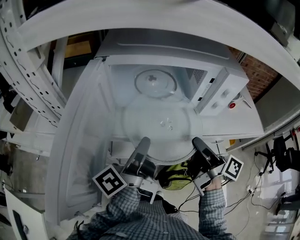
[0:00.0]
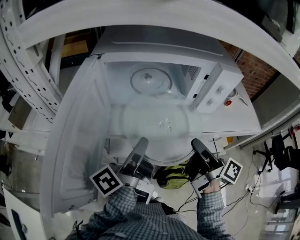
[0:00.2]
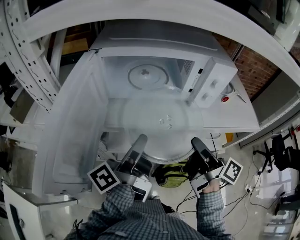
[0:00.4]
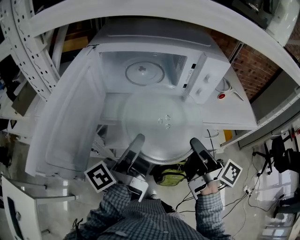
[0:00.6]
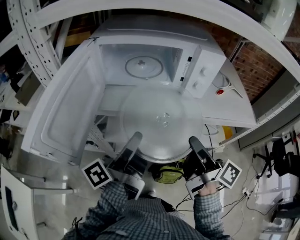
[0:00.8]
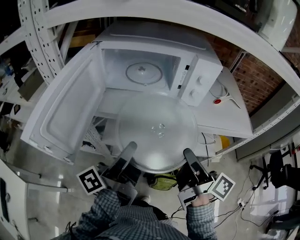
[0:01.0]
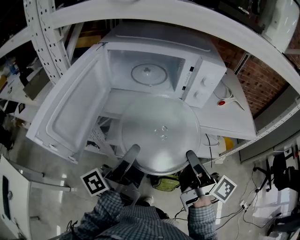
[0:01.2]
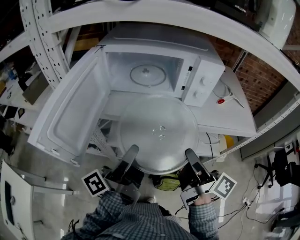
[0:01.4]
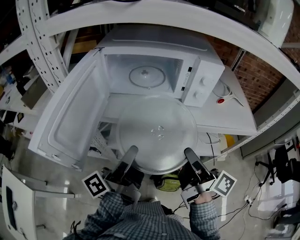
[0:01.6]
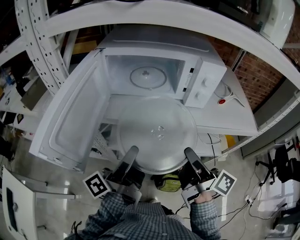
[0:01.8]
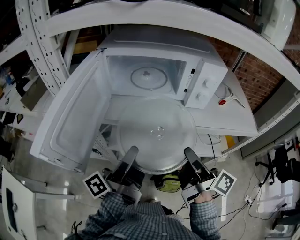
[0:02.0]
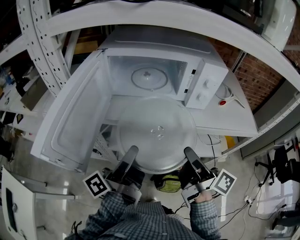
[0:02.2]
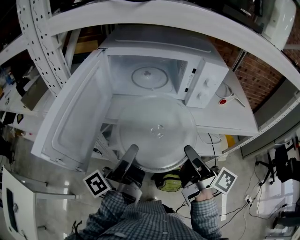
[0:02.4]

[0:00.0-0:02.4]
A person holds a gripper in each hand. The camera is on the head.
0:00.0 to 0:01.2: Both grippers move backward and to the right, roughly 15 cm.
0:01.2 to 0:02.4: The grippers move only a little.

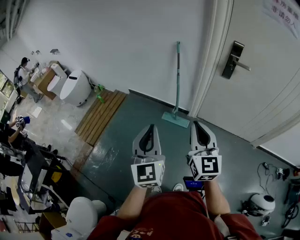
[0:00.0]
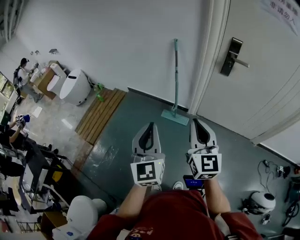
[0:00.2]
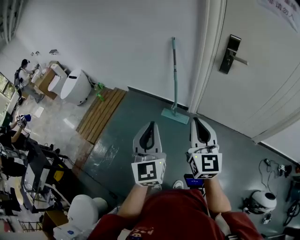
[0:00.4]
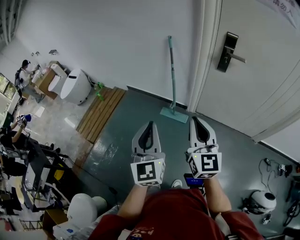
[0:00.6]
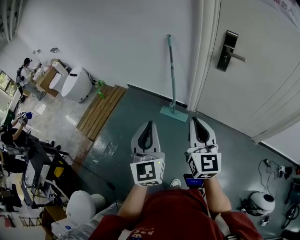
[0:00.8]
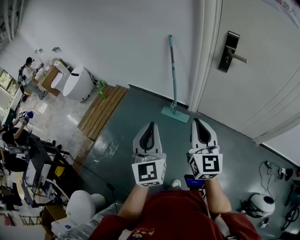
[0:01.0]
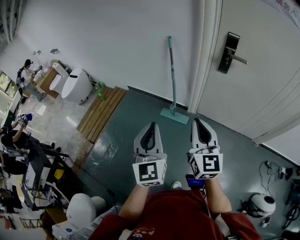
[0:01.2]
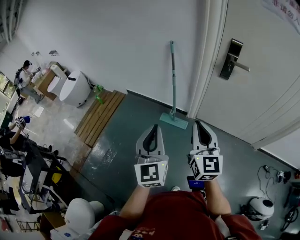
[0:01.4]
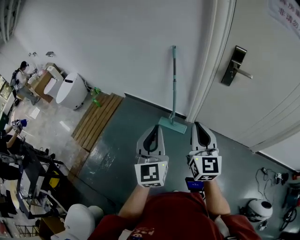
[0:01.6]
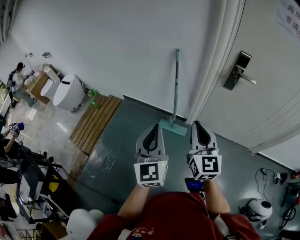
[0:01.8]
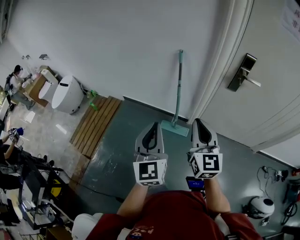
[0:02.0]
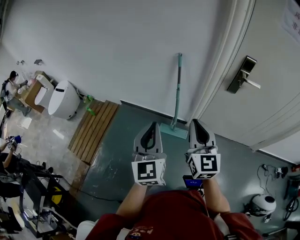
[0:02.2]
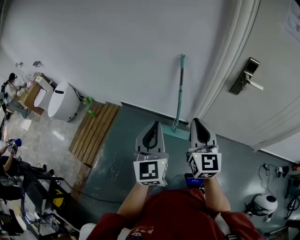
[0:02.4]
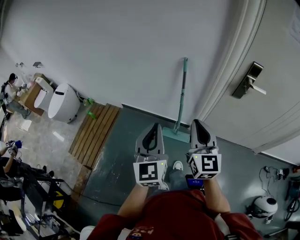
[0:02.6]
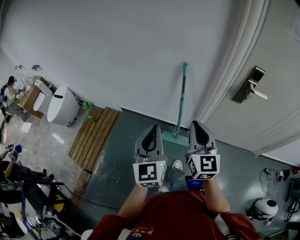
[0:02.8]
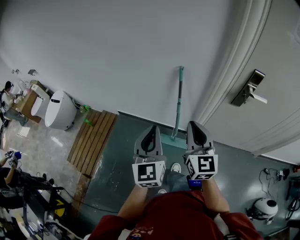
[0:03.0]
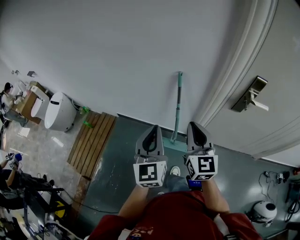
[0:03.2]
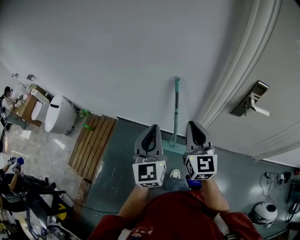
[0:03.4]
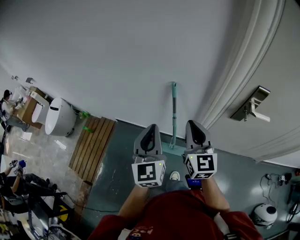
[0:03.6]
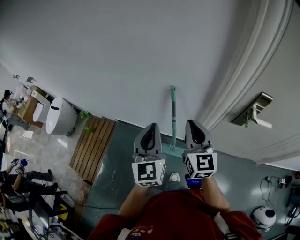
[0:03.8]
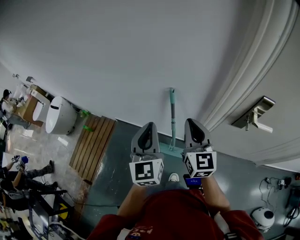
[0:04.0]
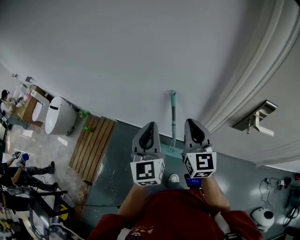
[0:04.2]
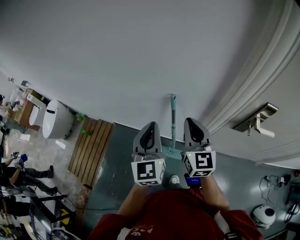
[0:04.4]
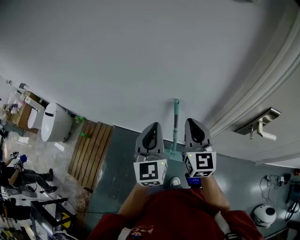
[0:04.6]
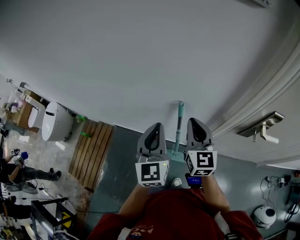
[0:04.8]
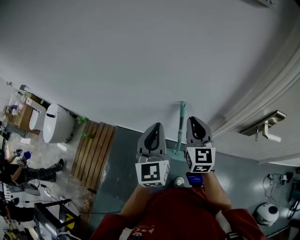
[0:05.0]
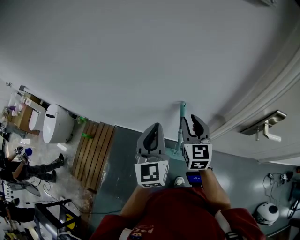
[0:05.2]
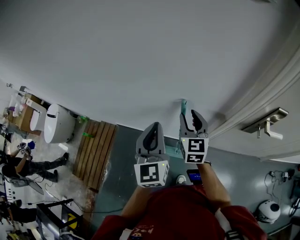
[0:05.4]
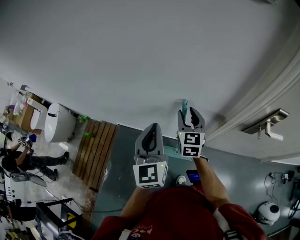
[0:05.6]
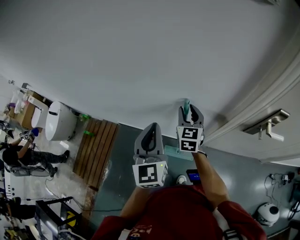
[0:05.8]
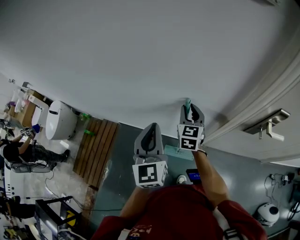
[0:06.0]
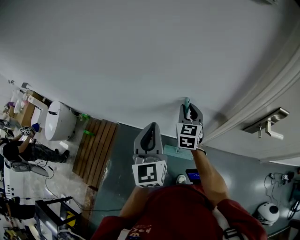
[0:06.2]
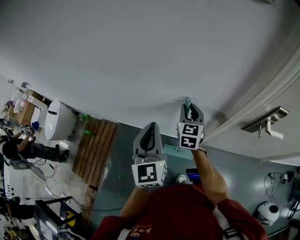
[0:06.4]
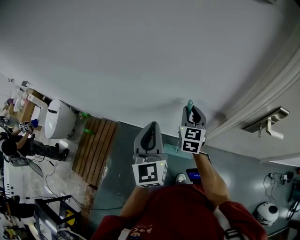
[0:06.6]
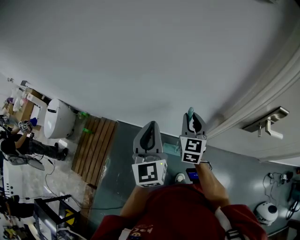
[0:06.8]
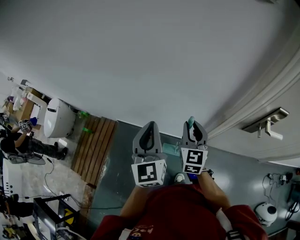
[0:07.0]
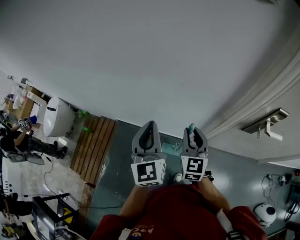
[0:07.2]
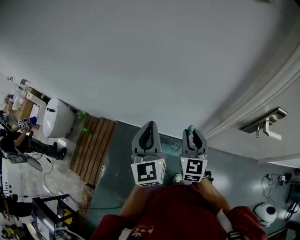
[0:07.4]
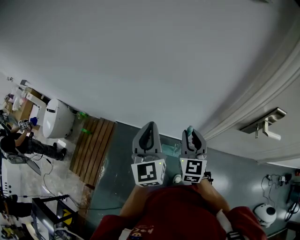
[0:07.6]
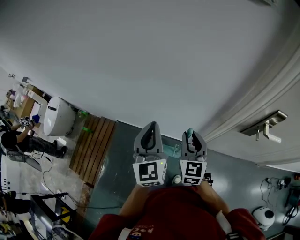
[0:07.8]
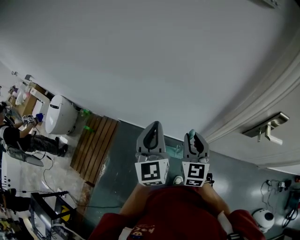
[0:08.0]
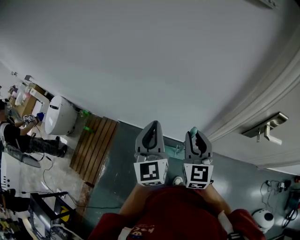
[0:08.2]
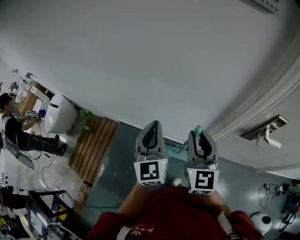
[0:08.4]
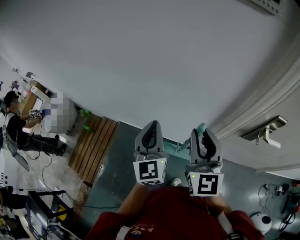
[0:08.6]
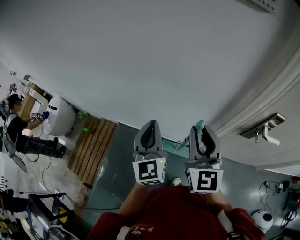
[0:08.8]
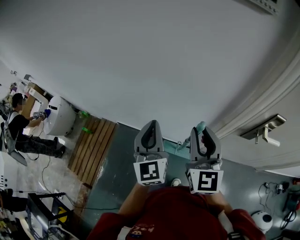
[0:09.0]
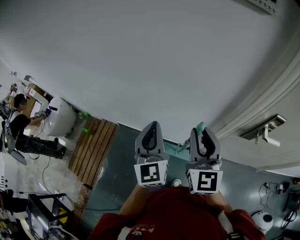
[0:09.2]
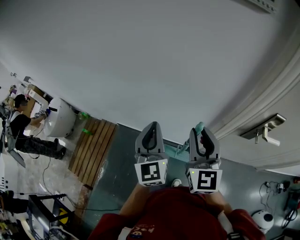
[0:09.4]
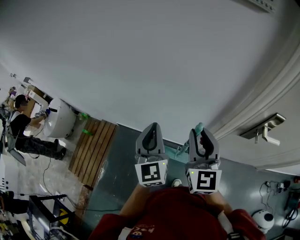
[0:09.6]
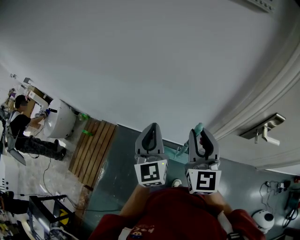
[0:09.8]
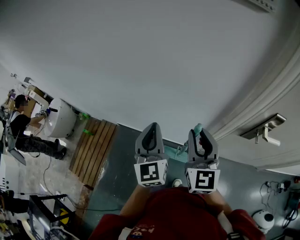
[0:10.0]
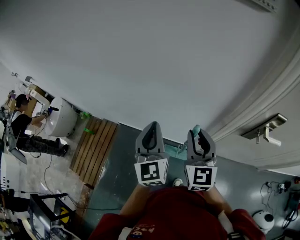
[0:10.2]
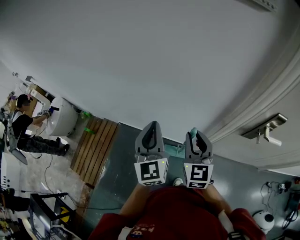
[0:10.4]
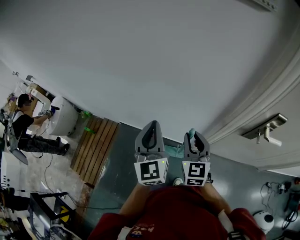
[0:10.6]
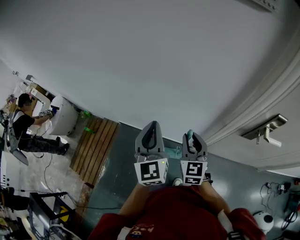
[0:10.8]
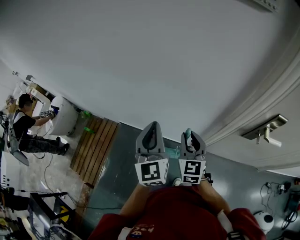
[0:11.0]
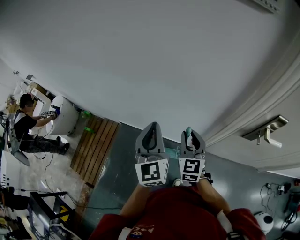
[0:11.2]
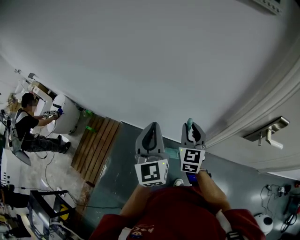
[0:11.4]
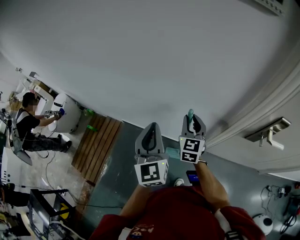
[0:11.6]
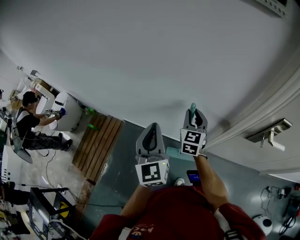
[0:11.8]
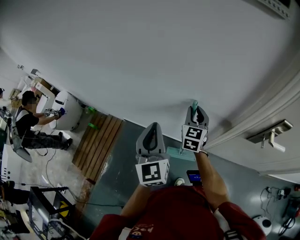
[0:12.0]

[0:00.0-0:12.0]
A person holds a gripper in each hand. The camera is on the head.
0:00.0 to 0:01.6: The left gripper heads forward and to the right, covering roughly 10 cm, while the right gripper travels forward by roughly 10 cm.
0:01.6 to 0:03.0: The left gripper travels forward by approximately 25 cm. The right gripper is displaced forward and to the left by about 25 cm.
0:03.0 to 0:04.4: The two grippers go roughly 25 cm forward.
0:04.4 to 0:06.0: The right gripper is displaced forward and downward by some 15 cm, and opens; the left gripper shifts by some 5 cm.
0:06.0 to 0:07.6: The right gripper moves backward, roughly 15 cm.
0:07.6 to 0:09.0: The right gripper is displaced upward by about 15 cm.
0:09.0 to 0:10.4: The right gripper shifts about 10 cm downward.
0:10.4 to 0:12.0: The right gripper moves forward and downward, approximately 15 cm.

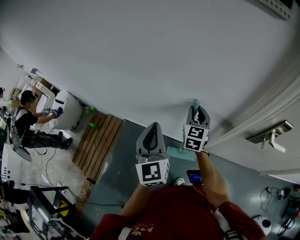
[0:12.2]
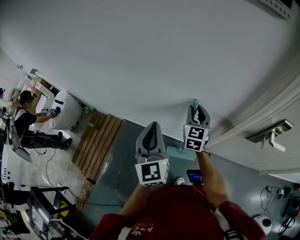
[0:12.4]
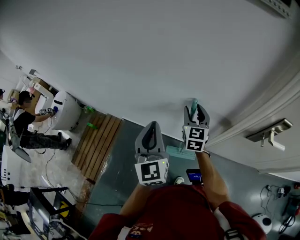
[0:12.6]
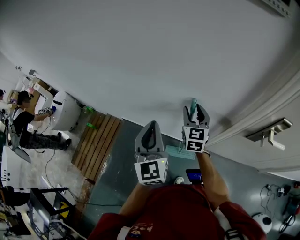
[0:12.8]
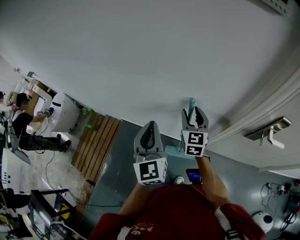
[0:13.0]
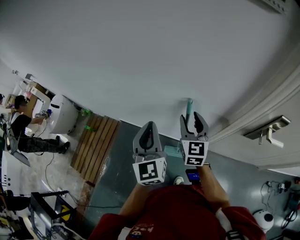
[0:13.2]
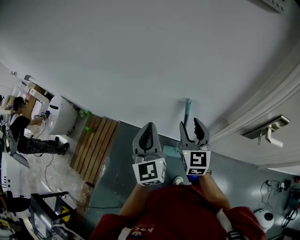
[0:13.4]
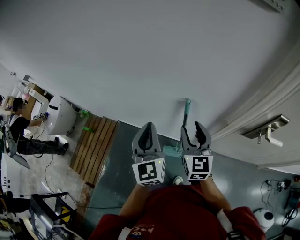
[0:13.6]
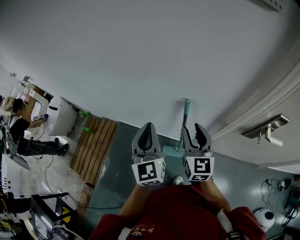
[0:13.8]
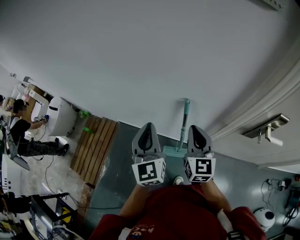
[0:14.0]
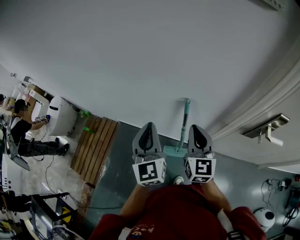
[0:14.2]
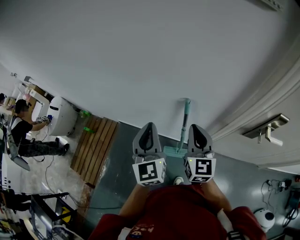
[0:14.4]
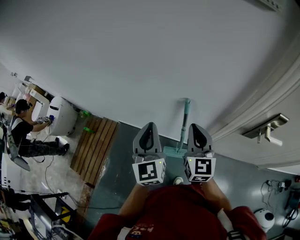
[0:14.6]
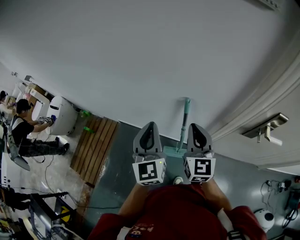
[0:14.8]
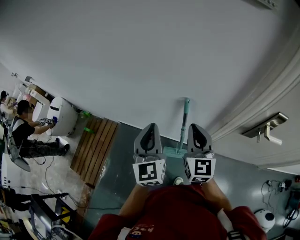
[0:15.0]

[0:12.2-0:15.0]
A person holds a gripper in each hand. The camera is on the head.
0:12.2 to 0:13.6: The right gripper shifts about 10 cm backward, and opens up.
0:13.6 to 0:15.0: The right gripper closes up.

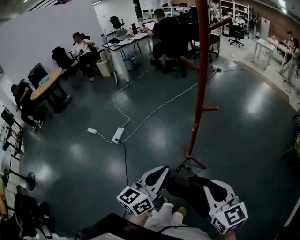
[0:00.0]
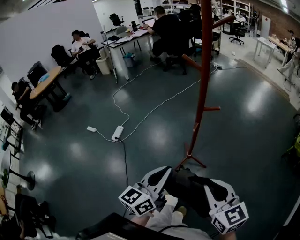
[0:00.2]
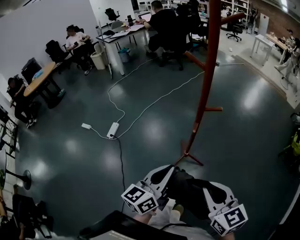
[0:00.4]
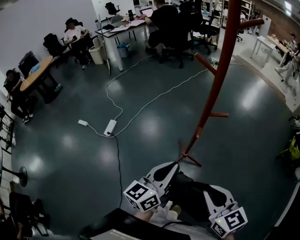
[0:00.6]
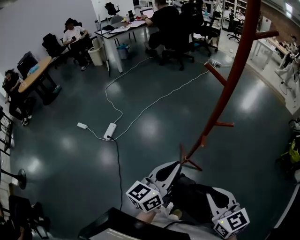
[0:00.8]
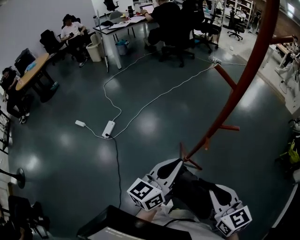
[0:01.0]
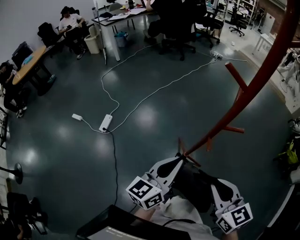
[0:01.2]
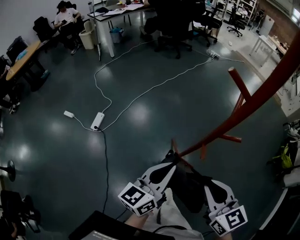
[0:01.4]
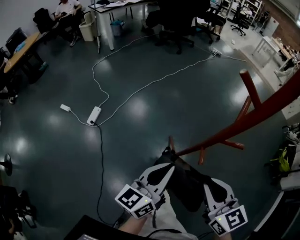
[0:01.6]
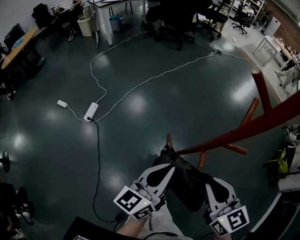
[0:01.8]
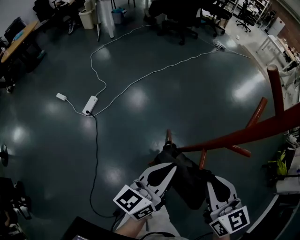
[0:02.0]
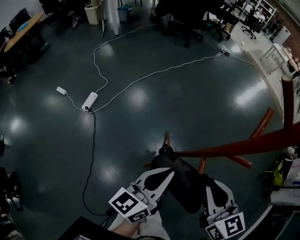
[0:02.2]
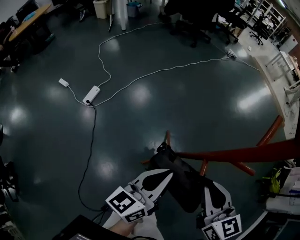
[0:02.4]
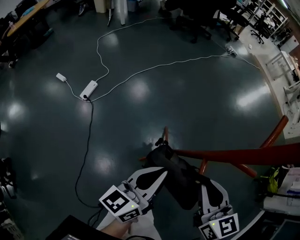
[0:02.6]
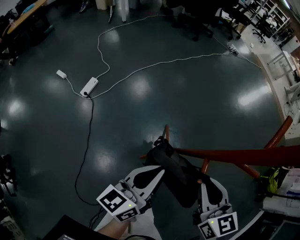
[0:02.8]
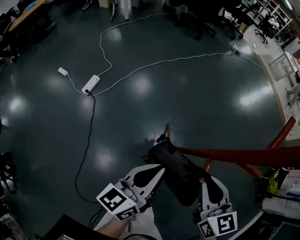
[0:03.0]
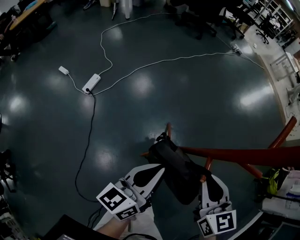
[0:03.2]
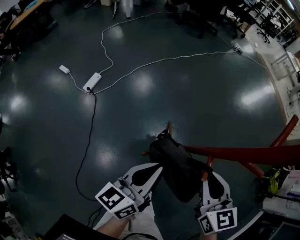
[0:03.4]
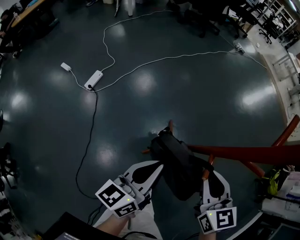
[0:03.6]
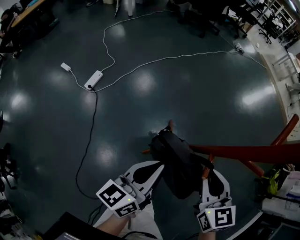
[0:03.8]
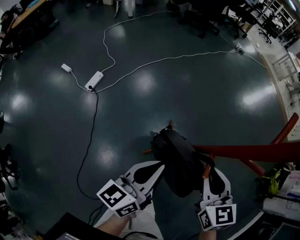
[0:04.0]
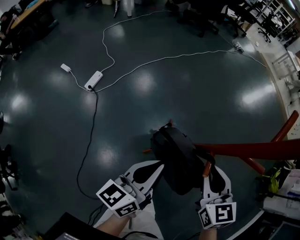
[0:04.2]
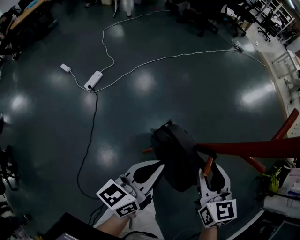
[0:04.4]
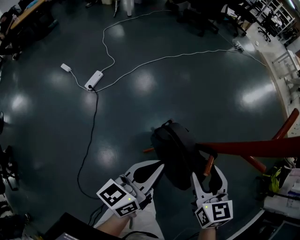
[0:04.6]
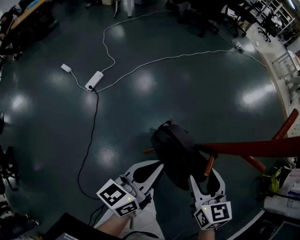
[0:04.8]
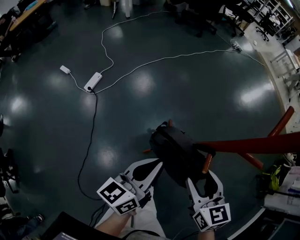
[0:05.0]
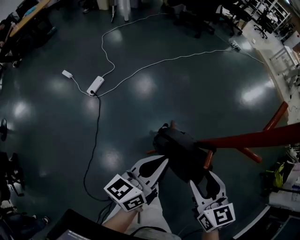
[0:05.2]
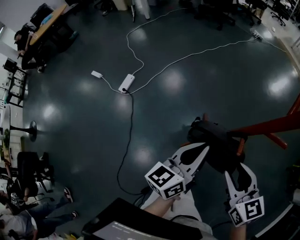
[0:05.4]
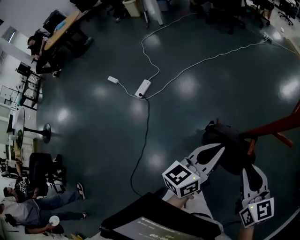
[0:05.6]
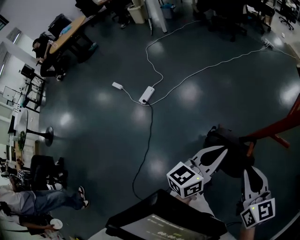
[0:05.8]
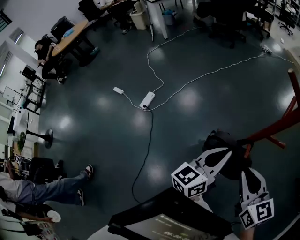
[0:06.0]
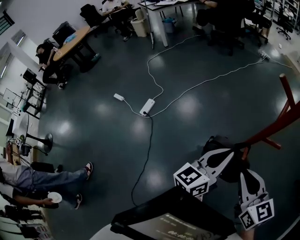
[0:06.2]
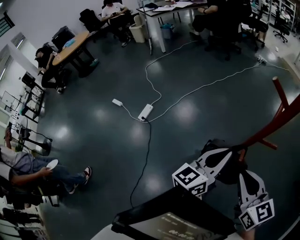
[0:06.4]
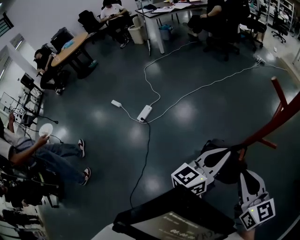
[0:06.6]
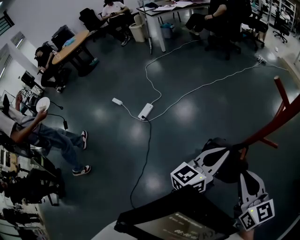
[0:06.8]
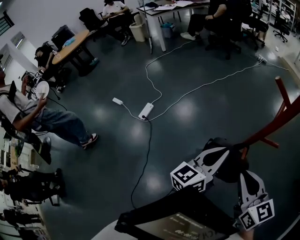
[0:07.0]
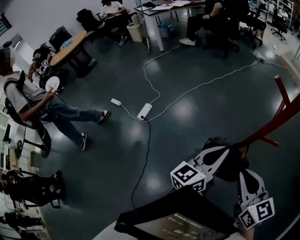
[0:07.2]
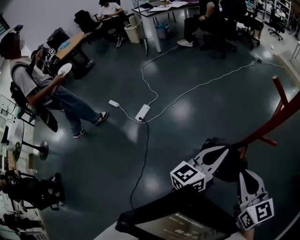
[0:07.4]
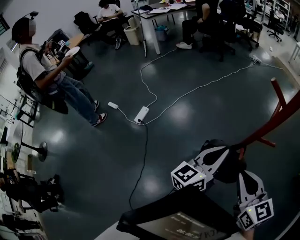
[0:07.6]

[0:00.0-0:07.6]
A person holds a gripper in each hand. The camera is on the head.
0:00.0 to 0:01.6: Both grippers move forward, approximately 25 cm.
0:01.6 to 0:03.0: The right gripper shifts some 10 cm downward and forward; the left gripper moves downward, approximately 10 cm.
0:03.0 to 0:04.6: The right gripper opens.
0:04.6 to 0:06.0: The grippers both shift upward by some 15 cm. The right gripper closes its fingers.
0:06.0 to 0:07.6: There are only small adjustments of the grippers.
